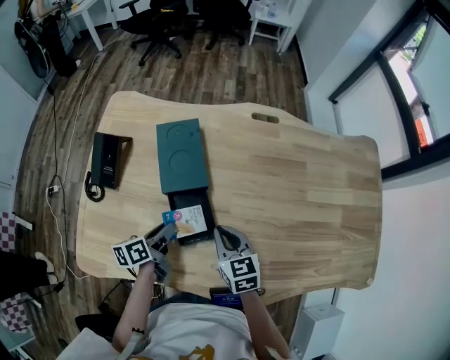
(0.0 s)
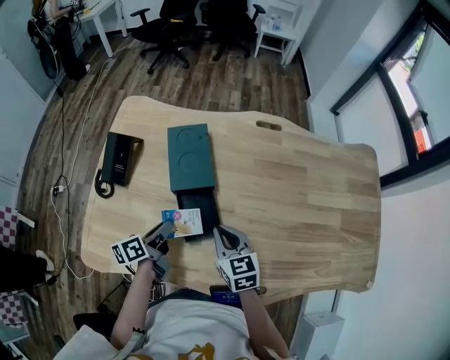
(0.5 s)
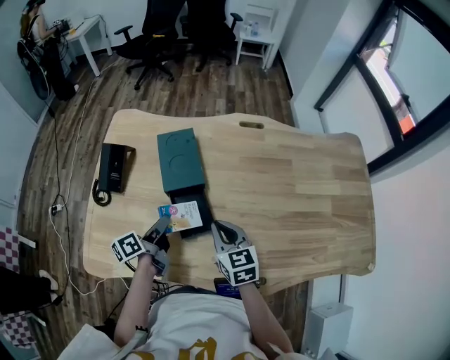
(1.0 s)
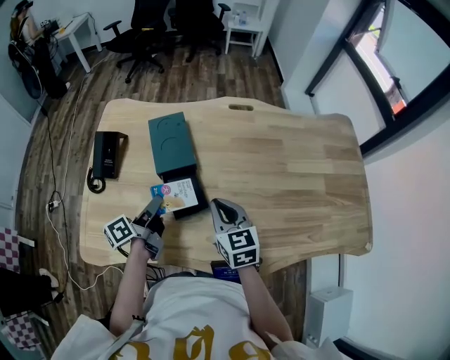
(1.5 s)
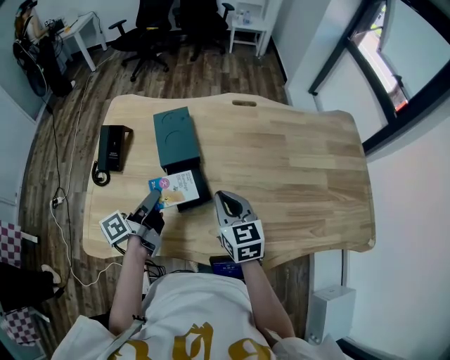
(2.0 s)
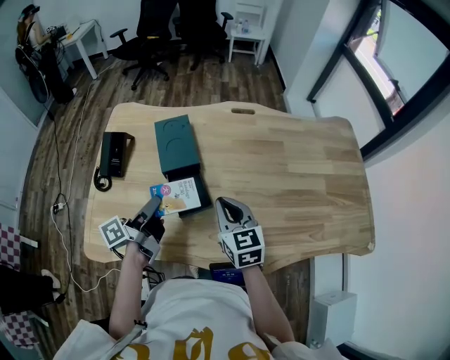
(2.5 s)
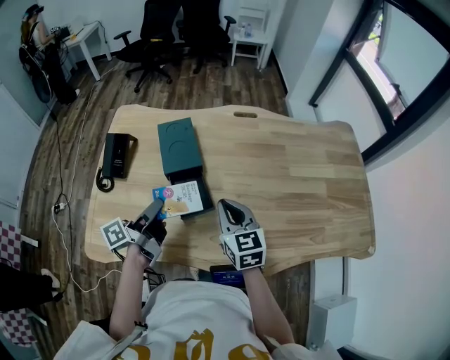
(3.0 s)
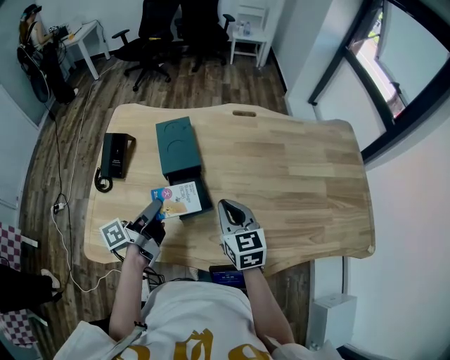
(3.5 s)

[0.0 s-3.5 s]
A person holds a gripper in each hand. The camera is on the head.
0.0 to 2.0 s: Both grippers travel together upward, some 10 cm. The left gripper turns by roughly 30 degrees.
2.0 to 3.5 s: The grippers make only small movements.

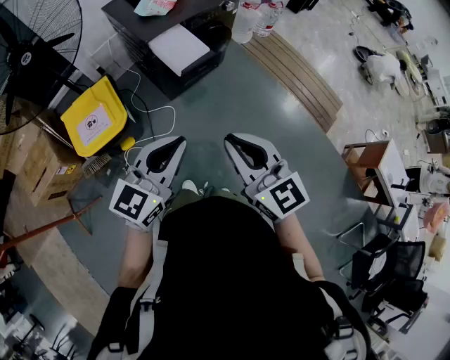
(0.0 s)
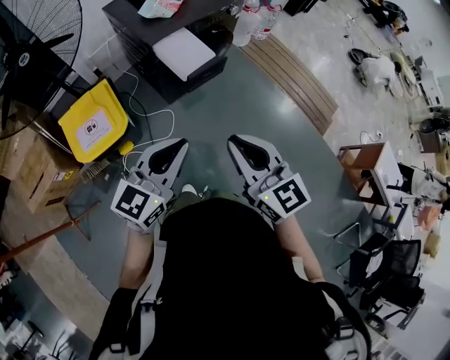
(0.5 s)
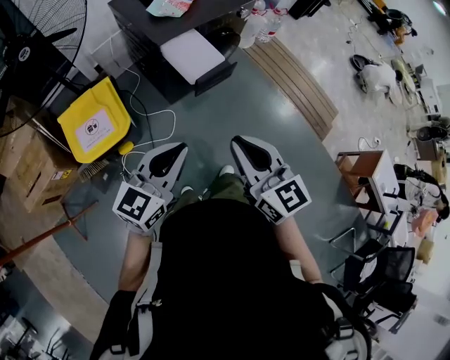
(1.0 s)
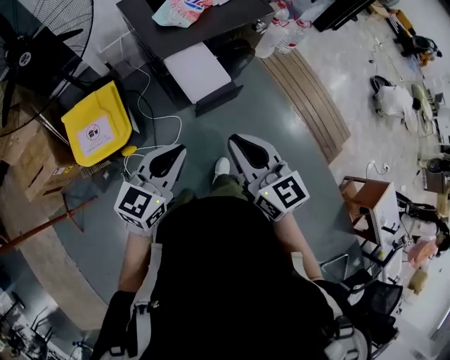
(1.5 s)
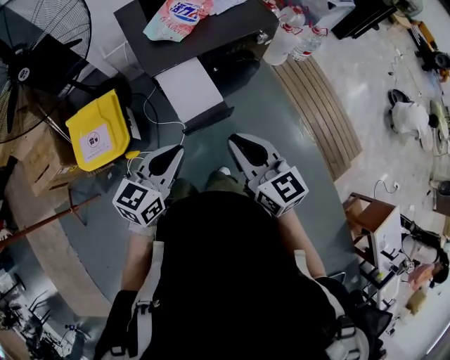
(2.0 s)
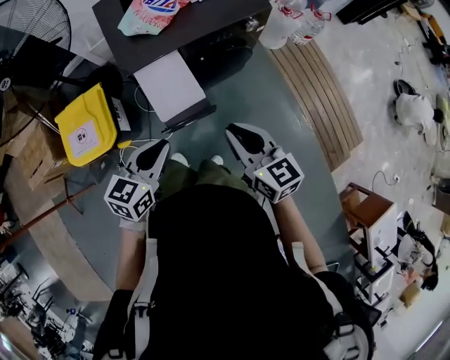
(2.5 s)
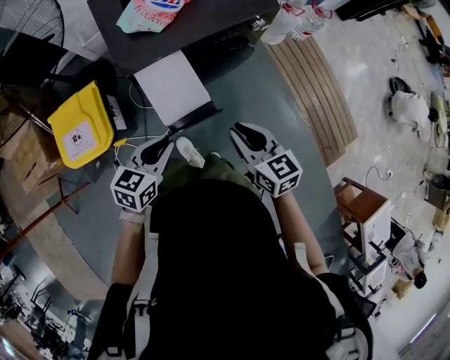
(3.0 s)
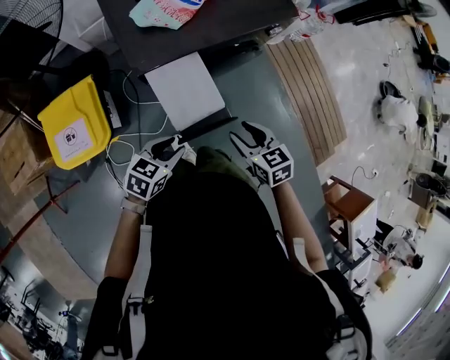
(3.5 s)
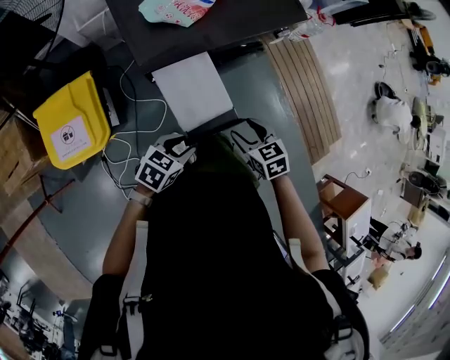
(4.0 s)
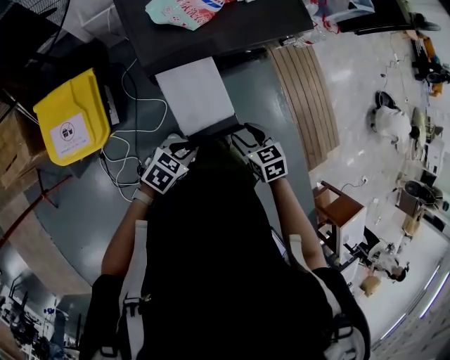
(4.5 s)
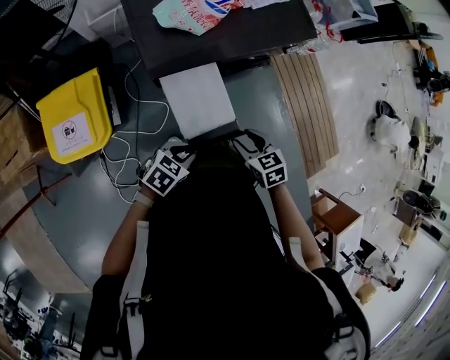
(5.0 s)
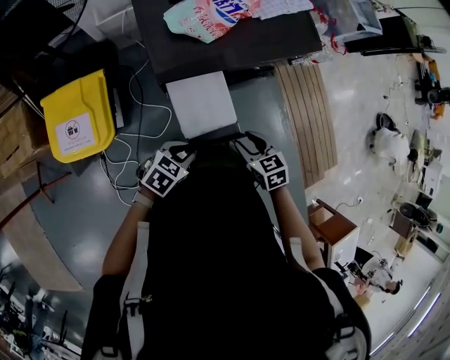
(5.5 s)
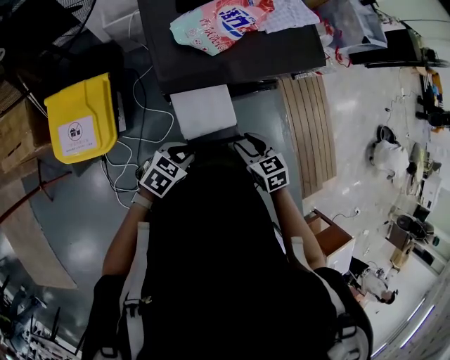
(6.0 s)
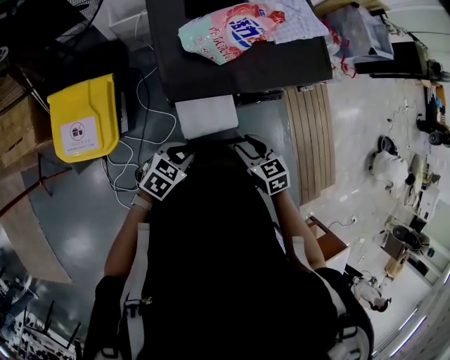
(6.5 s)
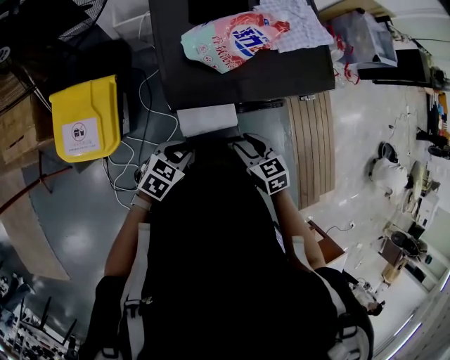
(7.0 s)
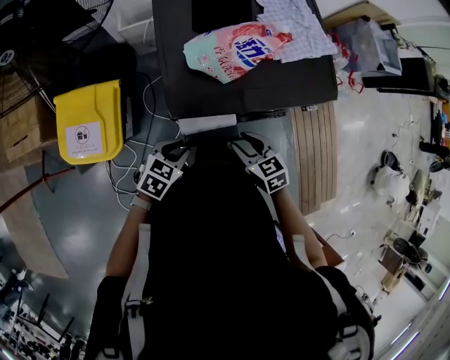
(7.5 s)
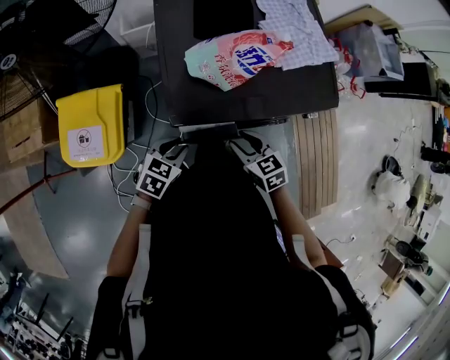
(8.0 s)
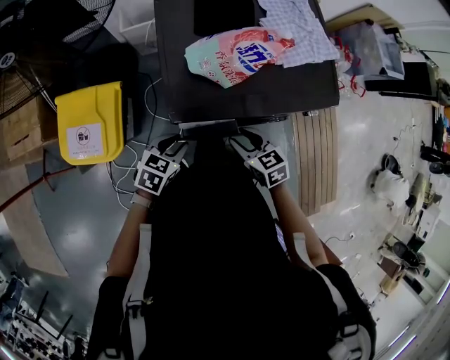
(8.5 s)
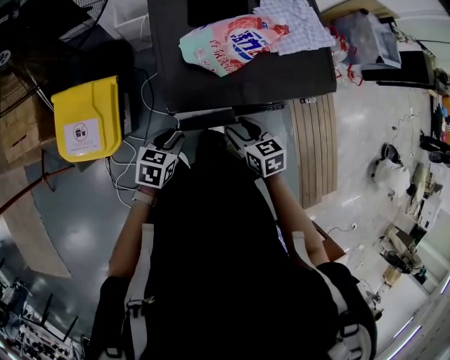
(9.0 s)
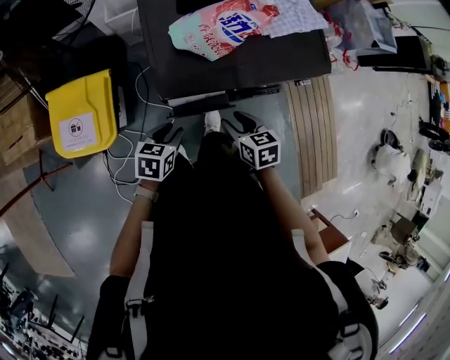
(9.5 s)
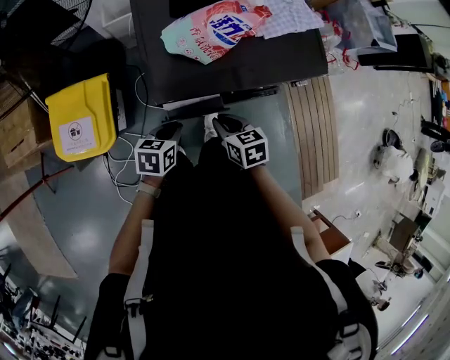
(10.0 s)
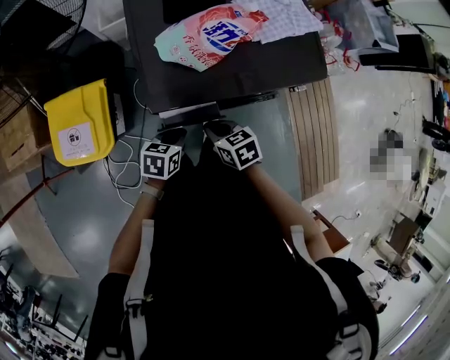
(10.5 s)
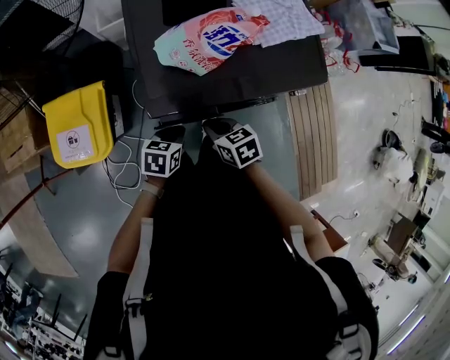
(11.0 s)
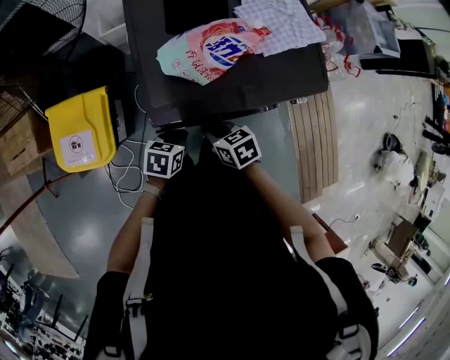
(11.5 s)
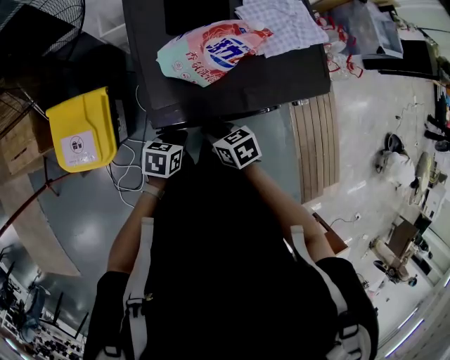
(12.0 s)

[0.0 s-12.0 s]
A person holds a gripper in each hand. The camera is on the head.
0.0 to 2.0 s: Both grippers move forward, some 30 cm. The left gripper swivels roughly 20 degrees.
2.0 to 4.0 s: The right gripper shifts about 30 cm downward and forward, points its fingers approximately 40 degrees further downward, and opens up, while the left gripper travels downward by some 25 cm, turns by approximately 30 degrees, and opens up.
4.0 to 6.0 s: The two grippers go approximately 5 cm forward.
6.0 to 8.0 s: Both grippers travel together forward and to the left, some 15 cm.
8.0 to 10.0 s: The right gripper closes. The left gripper swivels roughly 20 degrees.
10.0 to 12.0 s: The left gripper moves roughly 5 cm. The right gripper ends up about 5 cm from where it was.

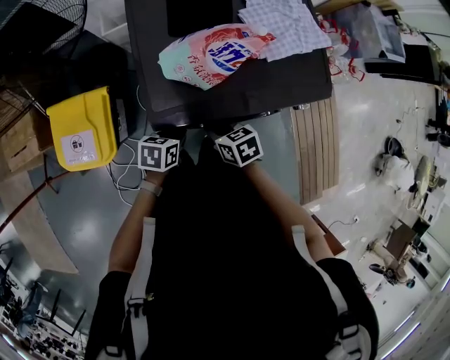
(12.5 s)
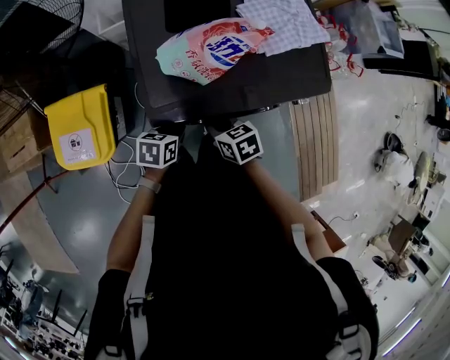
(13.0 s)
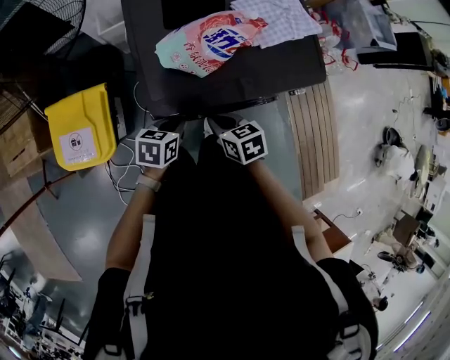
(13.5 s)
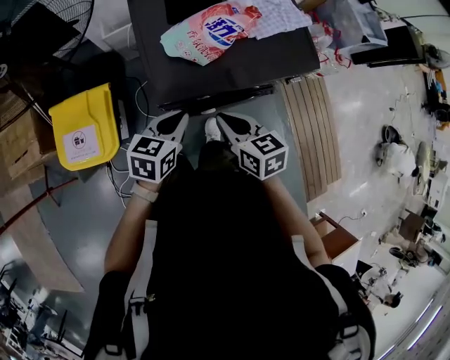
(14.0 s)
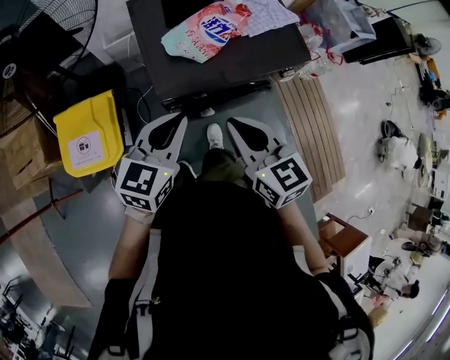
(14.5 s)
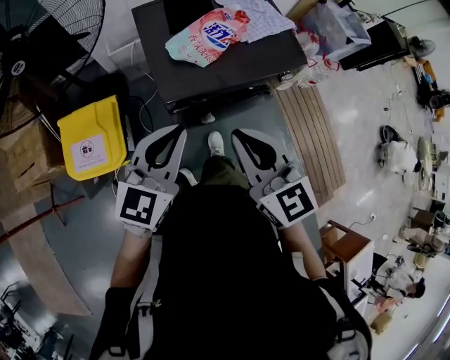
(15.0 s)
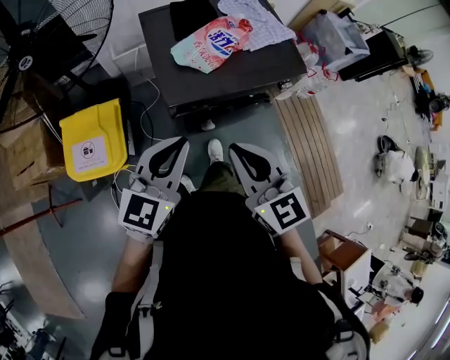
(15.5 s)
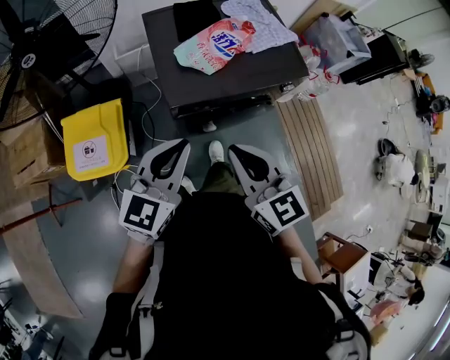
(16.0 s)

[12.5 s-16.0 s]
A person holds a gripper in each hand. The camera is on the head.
12.5 to 14.5 s: The left gripper moves upward, some 25 cm, and tilts its fingers about 30 degrees upward, while the right gripper heads upward and backward, covering some 30 cm, and swivels approximately 40 degrees.
14.5 to 16.0 s: The grippers both shift backward by approximately 5 cm.

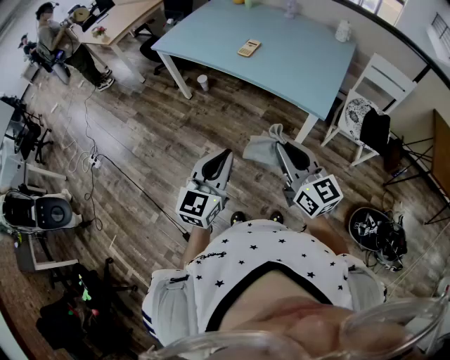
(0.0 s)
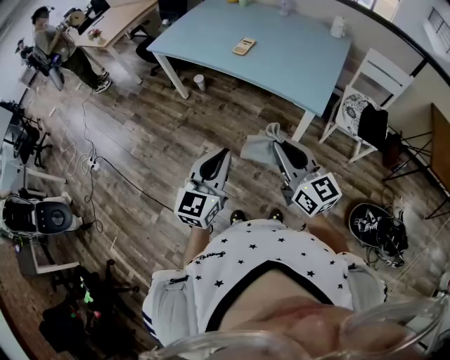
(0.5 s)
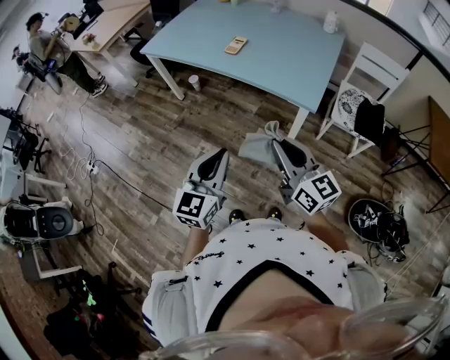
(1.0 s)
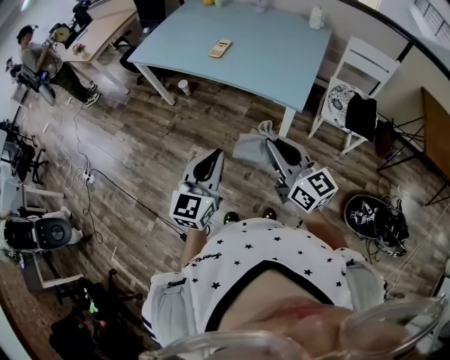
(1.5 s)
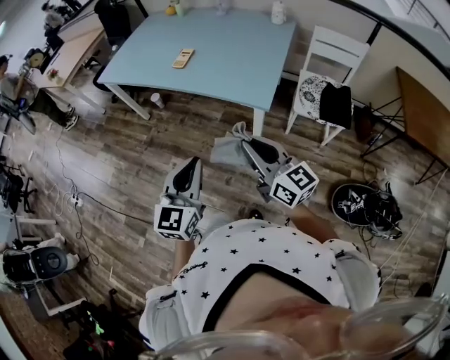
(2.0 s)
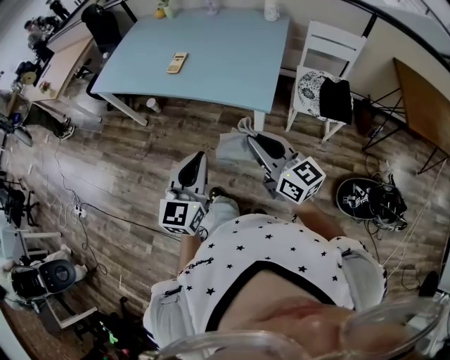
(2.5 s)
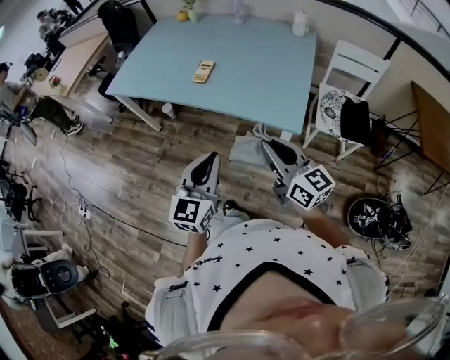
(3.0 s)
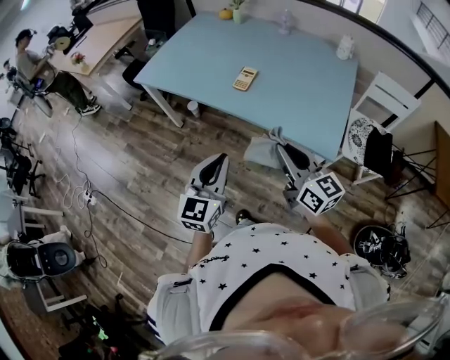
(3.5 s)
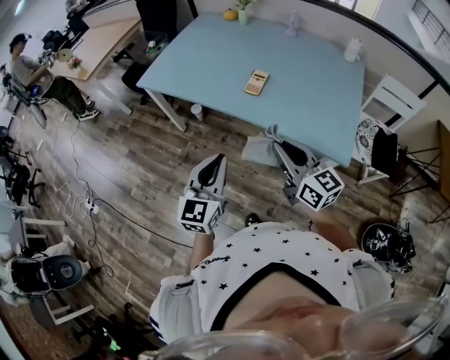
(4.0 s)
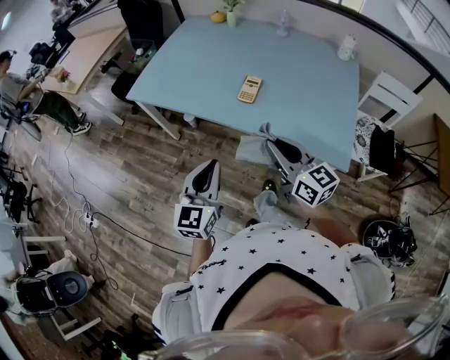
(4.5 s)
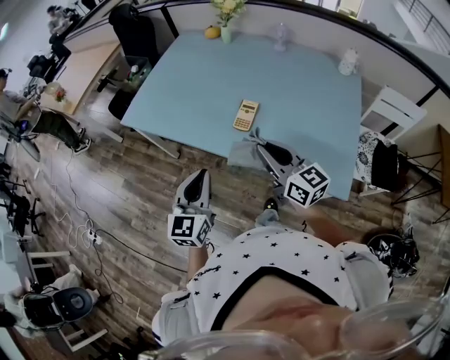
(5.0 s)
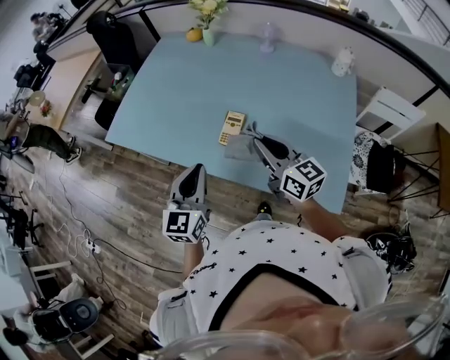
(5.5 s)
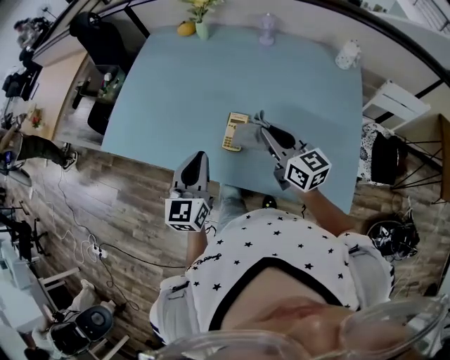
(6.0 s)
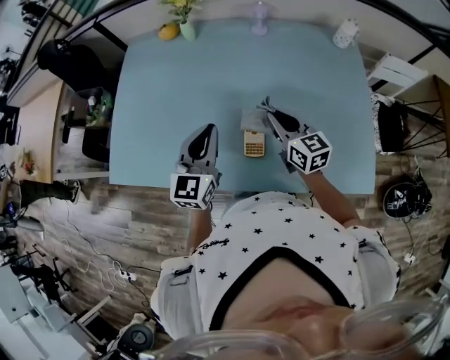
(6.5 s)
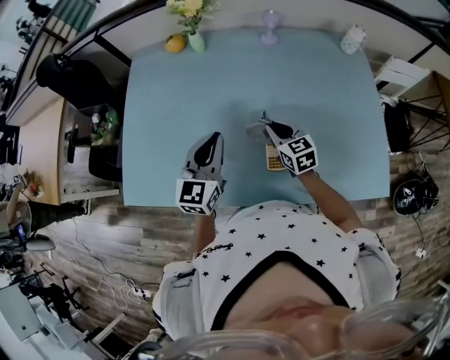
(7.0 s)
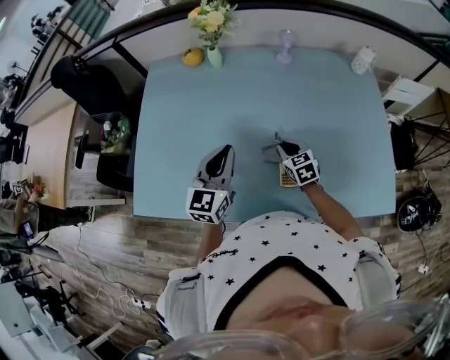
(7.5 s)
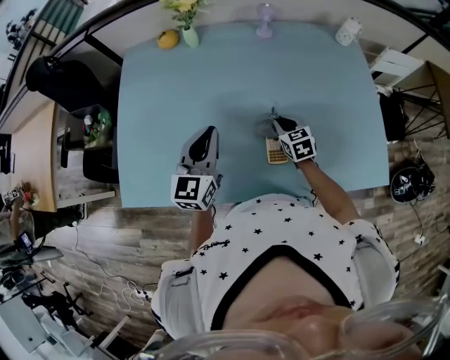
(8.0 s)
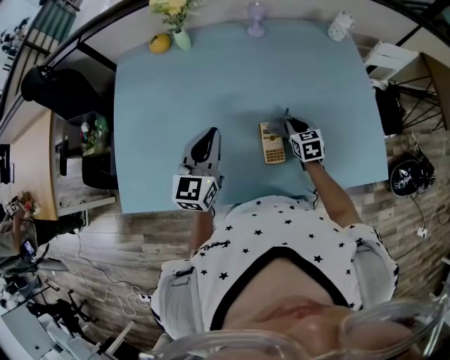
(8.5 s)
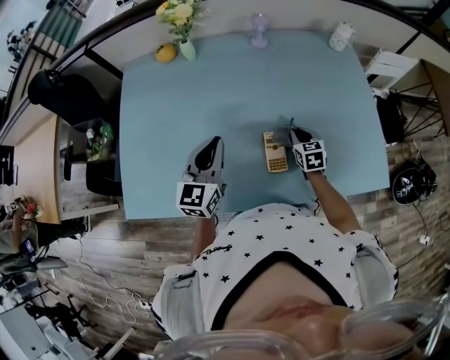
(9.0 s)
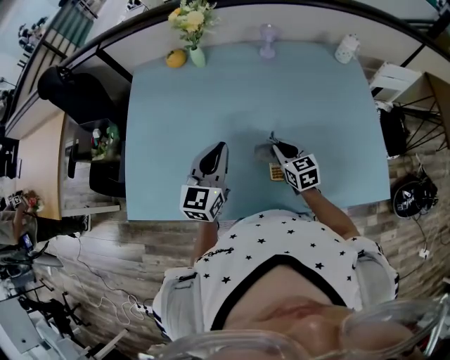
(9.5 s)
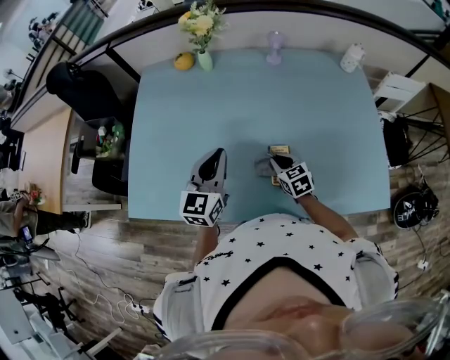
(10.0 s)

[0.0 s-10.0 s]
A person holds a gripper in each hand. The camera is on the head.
0.0 to 2.0 s: The grippers both shift to the right by about 10 cm.
2.0 to 4.0 s: Both grippers move forward and to the left, roughly 30 cm.
4.0 to 6.0 s: The two grippers go roughly 35 cm forward.
6.0 to 8.0 s: The right gripper heads downward, covering about 20 cm, and tips its fingers downward by roughly 30 degrees. The left gripper moves about 20 cm, and turns by roughly 20 degrees.
8.0 to 10.0 s: The right gripper moves backward, approximately 5 cm, and goes to the right and returns, roughly 10 cm each way.
